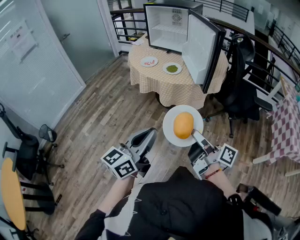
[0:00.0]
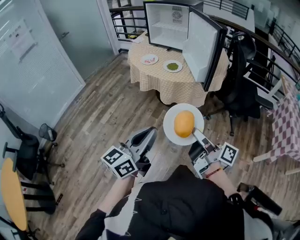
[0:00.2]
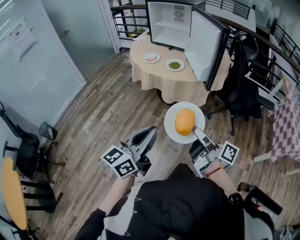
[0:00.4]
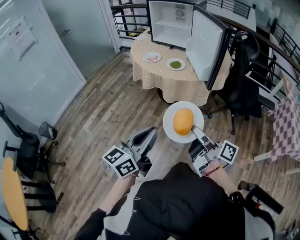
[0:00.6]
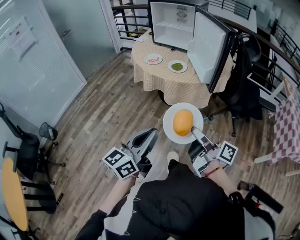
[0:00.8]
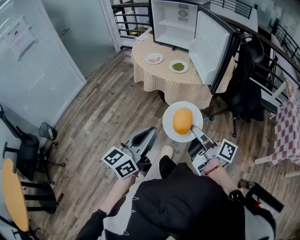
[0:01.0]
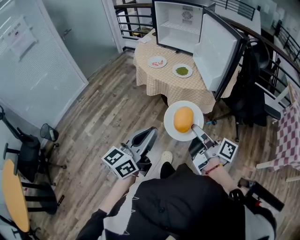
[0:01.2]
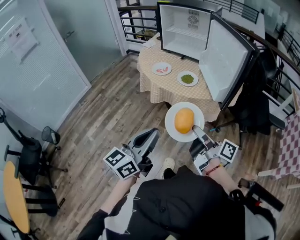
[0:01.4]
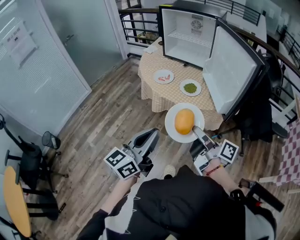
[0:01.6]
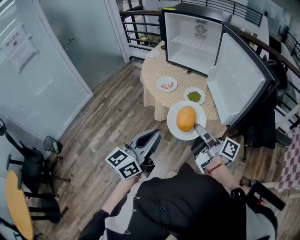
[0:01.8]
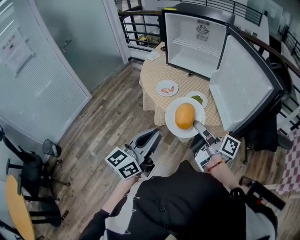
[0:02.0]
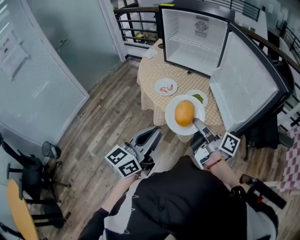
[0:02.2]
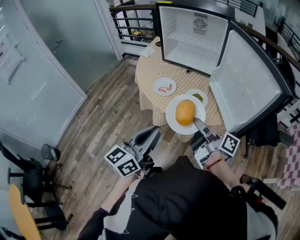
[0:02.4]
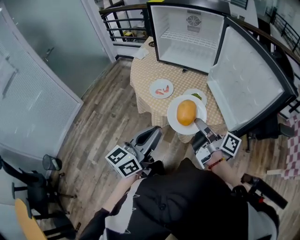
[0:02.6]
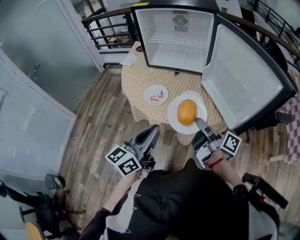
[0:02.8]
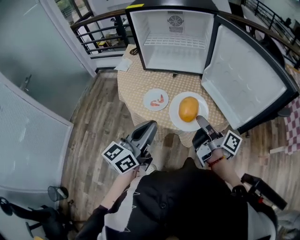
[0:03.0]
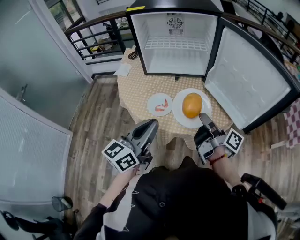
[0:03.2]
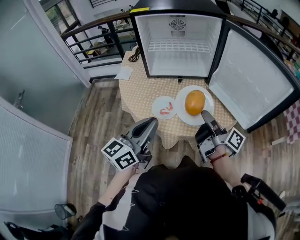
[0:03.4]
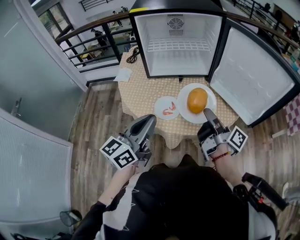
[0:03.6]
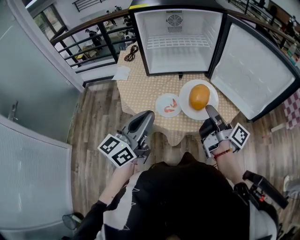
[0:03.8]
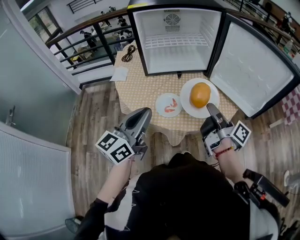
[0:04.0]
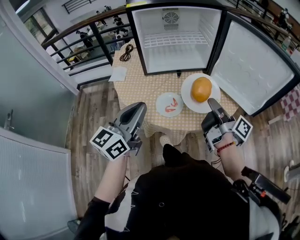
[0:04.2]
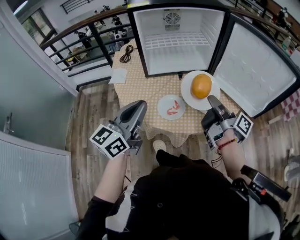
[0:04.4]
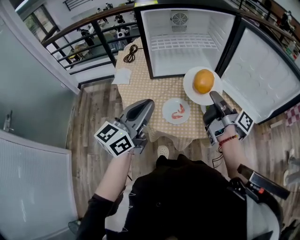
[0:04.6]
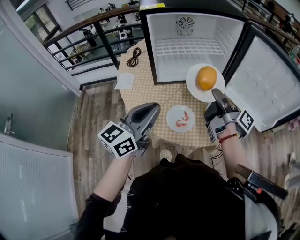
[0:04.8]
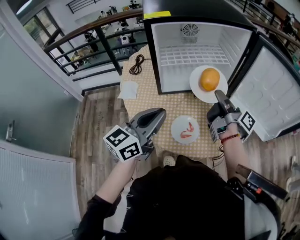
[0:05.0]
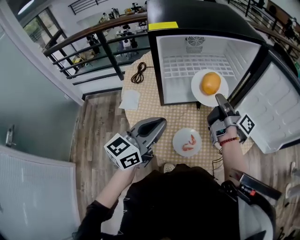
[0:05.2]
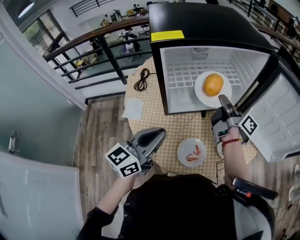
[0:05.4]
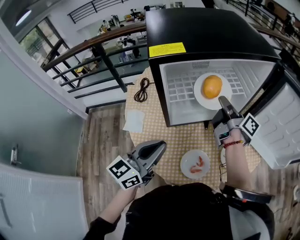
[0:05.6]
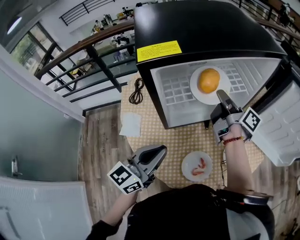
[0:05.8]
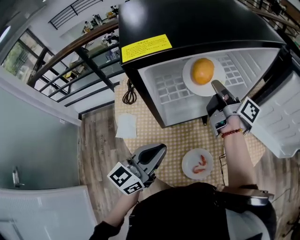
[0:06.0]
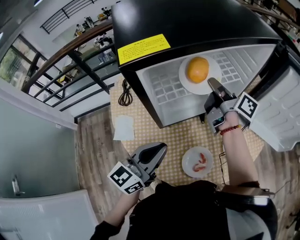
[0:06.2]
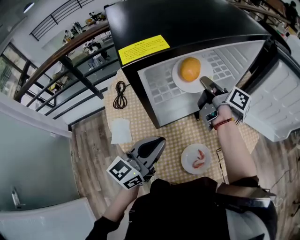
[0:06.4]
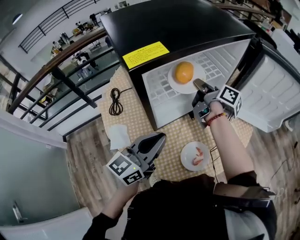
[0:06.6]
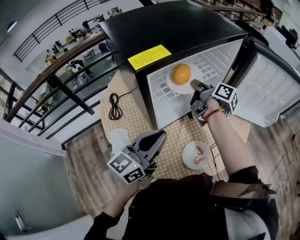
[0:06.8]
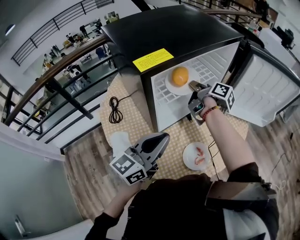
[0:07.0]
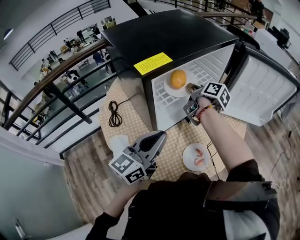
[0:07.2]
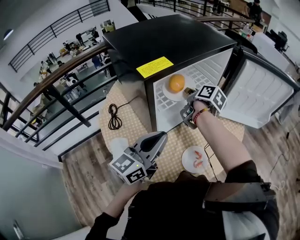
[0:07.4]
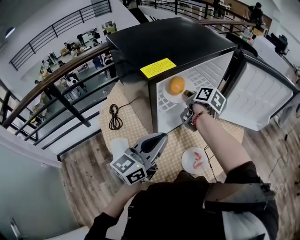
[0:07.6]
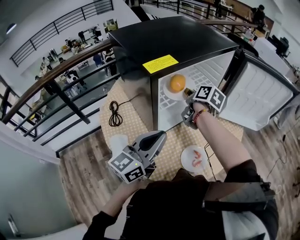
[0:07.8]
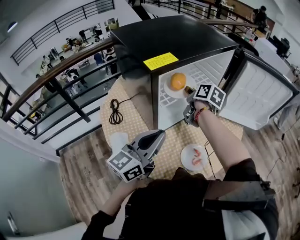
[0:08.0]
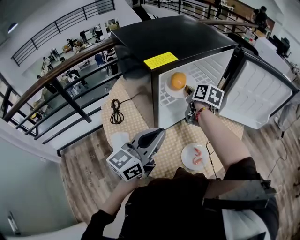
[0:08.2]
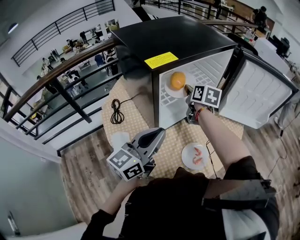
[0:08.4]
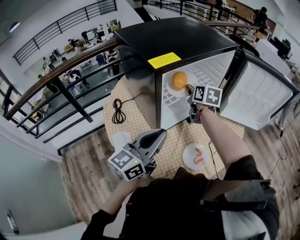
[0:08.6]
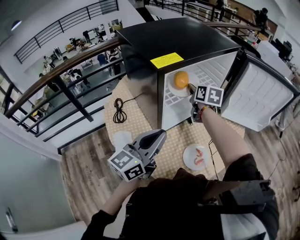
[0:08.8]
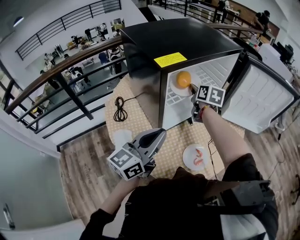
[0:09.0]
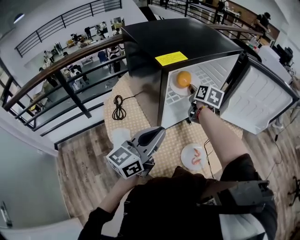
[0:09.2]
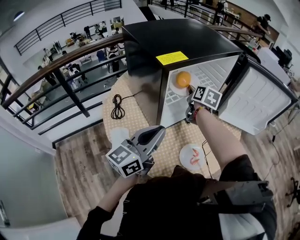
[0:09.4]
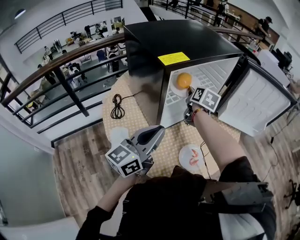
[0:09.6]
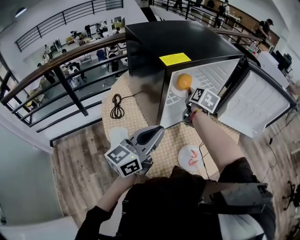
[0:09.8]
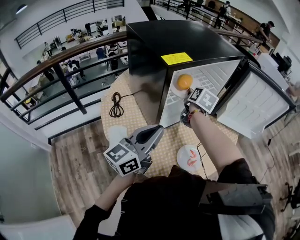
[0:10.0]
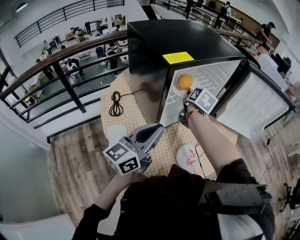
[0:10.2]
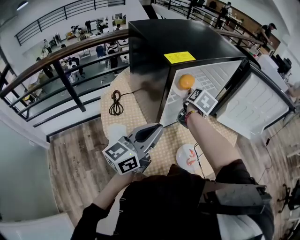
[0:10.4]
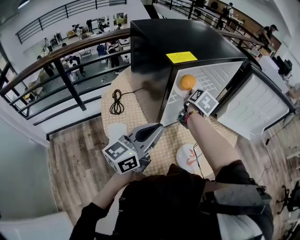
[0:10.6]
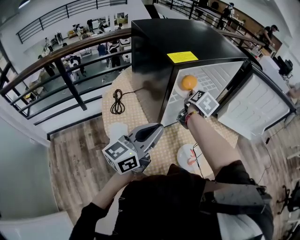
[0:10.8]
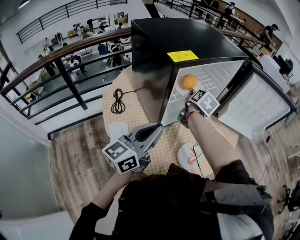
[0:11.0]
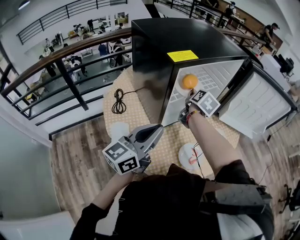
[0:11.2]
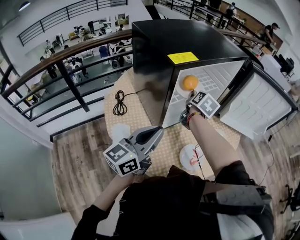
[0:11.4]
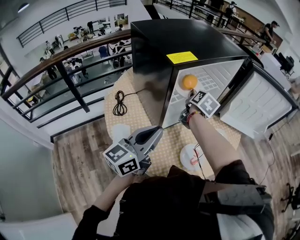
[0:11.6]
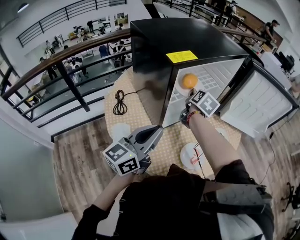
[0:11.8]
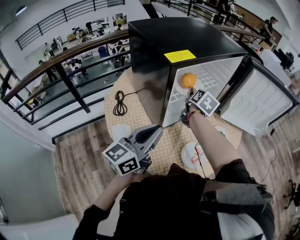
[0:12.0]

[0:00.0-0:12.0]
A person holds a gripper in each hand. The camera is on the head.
0:00.0 to 0:01.6: The left gripper is displaced forward and to the left by about 20 cm; the right gripper travels forward by some 25 cm.
0:01.6 to 0:03.0: The grippers both shift forward by about 25 cm. The right gripper swivels some 20 degrees.
0:03.0 to 0:04.4: The left gripper moves to the left and forward, approximately 20 cm; the right gripper heads to the left and forward, covering about 10 cm, and rotates roughly 20 degrees.
0:04.4 to 0:06.0: The left gripper goes some 20 cm forward, downward and to the left. The right gripper goes approximately 35 cm forward and to the left.
0:06.0 to 0:07.6: The right gripper swivels roughly 40 degrees; the left gripper heads upward, covering about 5 cm, and rotates some 20 degrees.
0:07.6 to 0:09.0: The right gripper changes its angle by about 30 degrees.
0:09.0 to 0:10.4: The right gripper rotates some 20 degrees.
0:10.4 to 0:12.0: The grippers stay close to where they were, moving slightly.

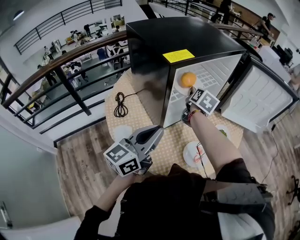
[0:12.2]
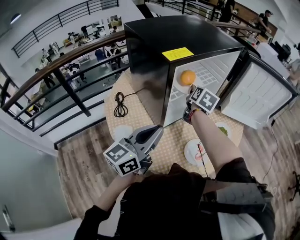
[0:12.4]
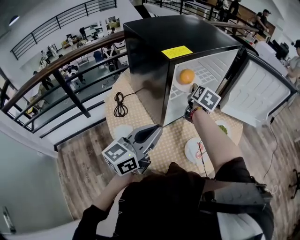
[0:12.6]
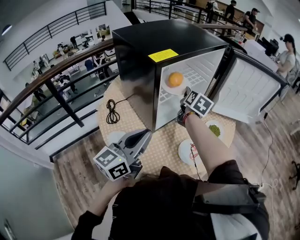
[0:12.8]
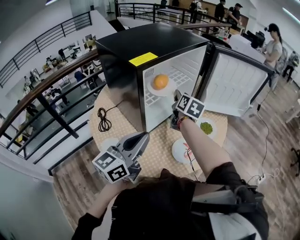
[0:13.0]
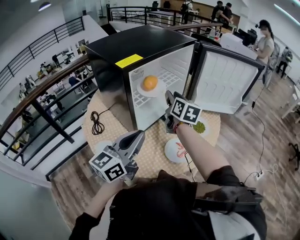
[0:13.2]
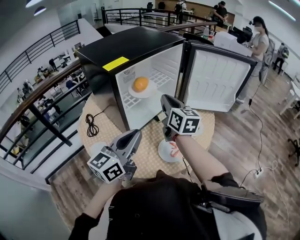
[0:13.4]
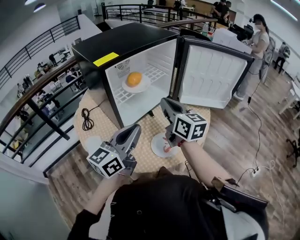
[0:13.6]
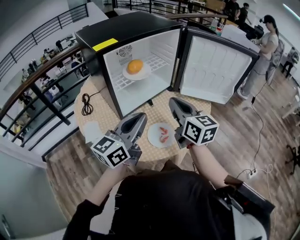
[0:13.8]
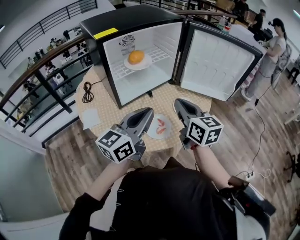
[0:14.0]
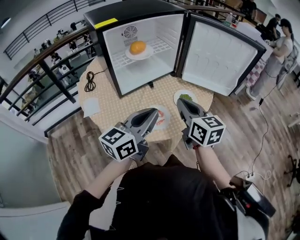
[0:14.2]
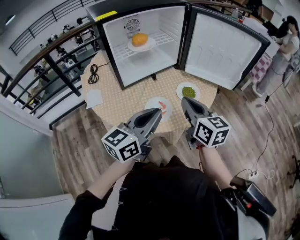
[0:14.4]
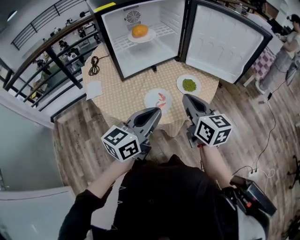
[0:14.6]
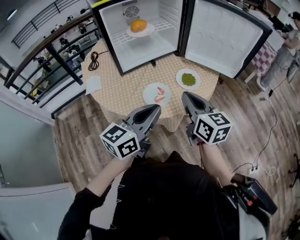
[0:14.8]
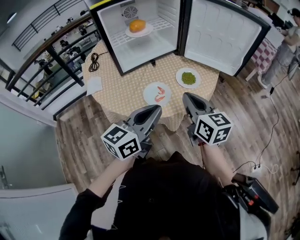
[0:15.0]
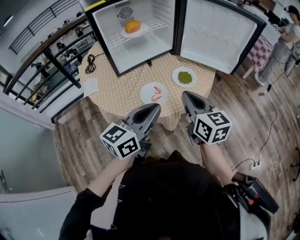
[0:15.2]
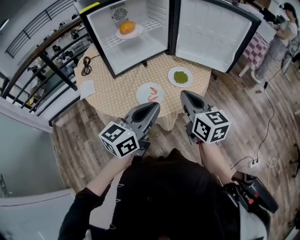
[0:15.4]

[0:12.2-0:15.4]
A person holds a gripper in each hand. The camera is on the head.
0:12.2 to 0:13.8: The left gripper shifts roughly 15 cm to the right; the right gripper travels backward and to the right by about 25 cm, rotates some 40 degrees, and closes.
0:13.8 to 0:15.4: Both grippers travel together to the right, backward and downward, about 20 cm.

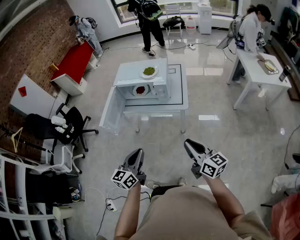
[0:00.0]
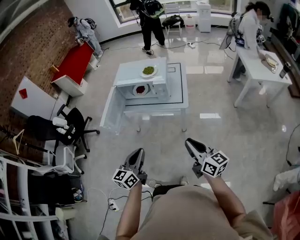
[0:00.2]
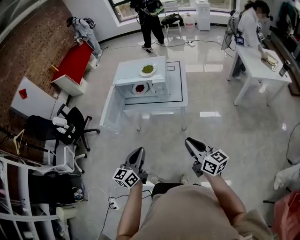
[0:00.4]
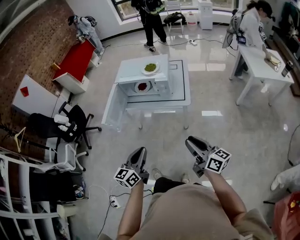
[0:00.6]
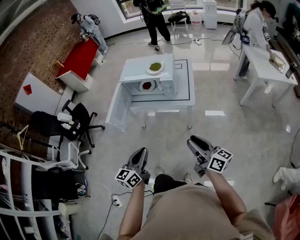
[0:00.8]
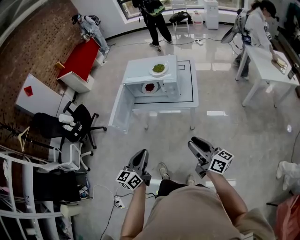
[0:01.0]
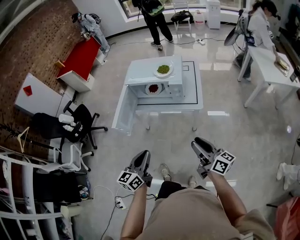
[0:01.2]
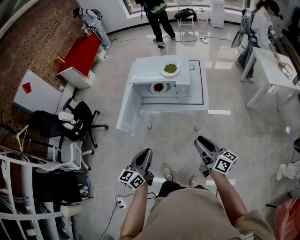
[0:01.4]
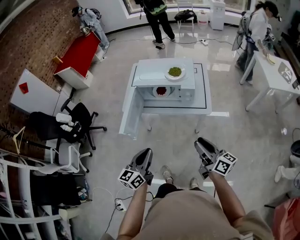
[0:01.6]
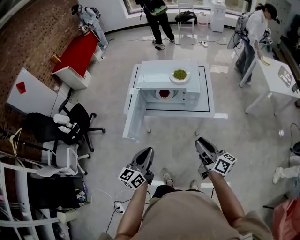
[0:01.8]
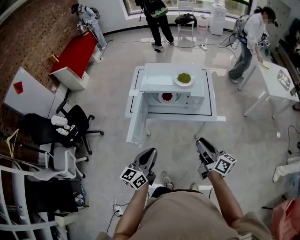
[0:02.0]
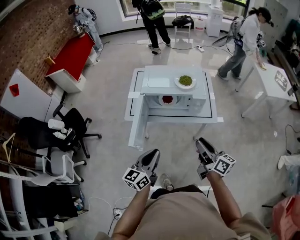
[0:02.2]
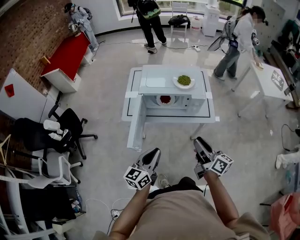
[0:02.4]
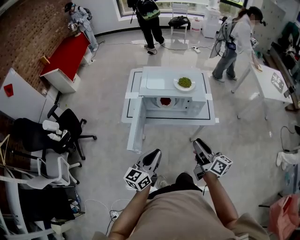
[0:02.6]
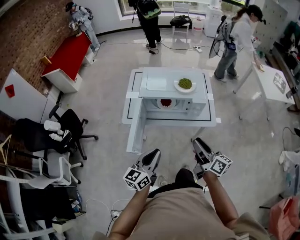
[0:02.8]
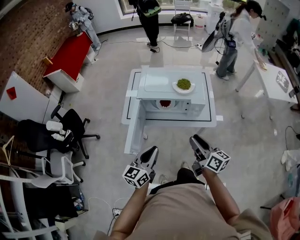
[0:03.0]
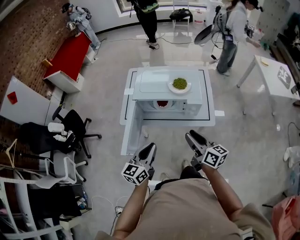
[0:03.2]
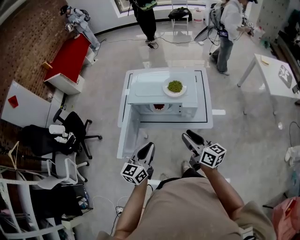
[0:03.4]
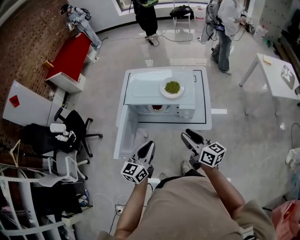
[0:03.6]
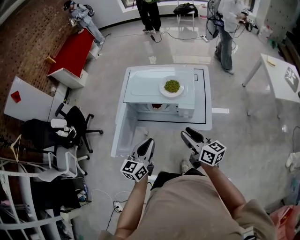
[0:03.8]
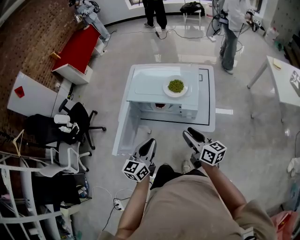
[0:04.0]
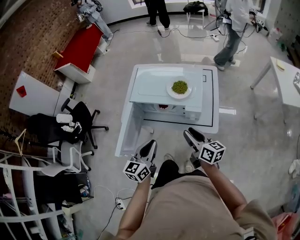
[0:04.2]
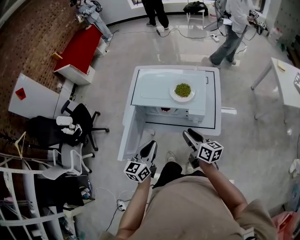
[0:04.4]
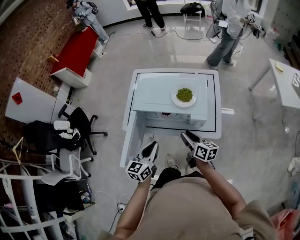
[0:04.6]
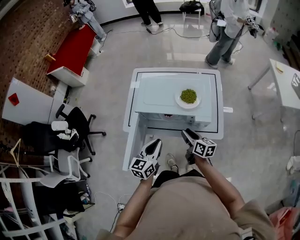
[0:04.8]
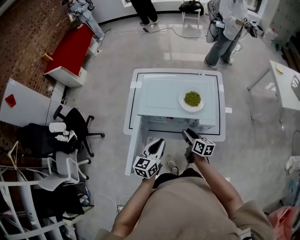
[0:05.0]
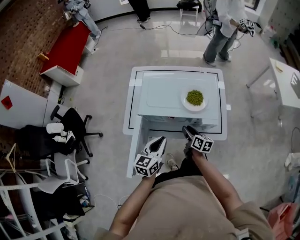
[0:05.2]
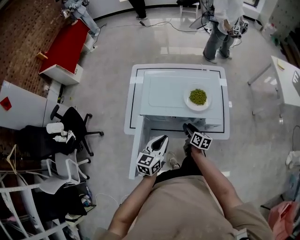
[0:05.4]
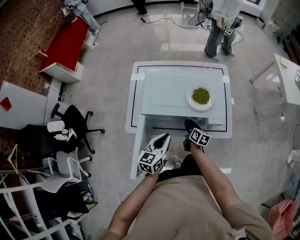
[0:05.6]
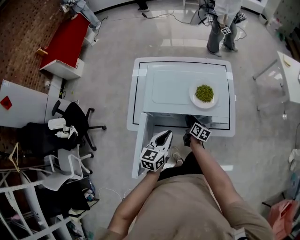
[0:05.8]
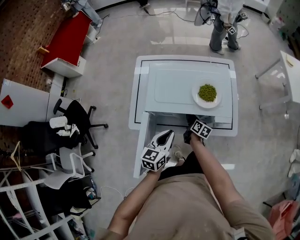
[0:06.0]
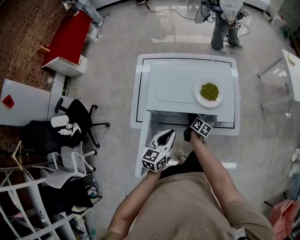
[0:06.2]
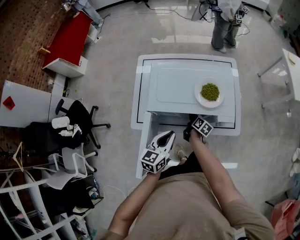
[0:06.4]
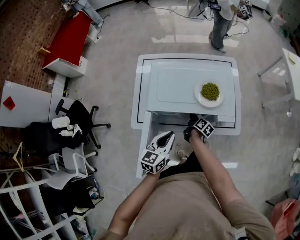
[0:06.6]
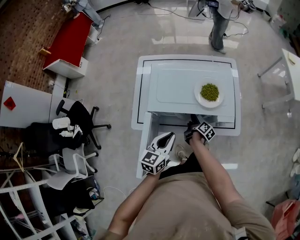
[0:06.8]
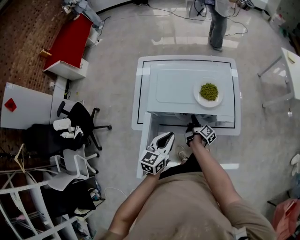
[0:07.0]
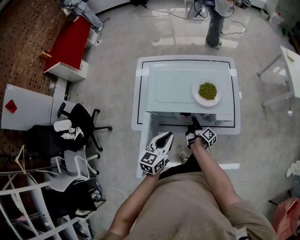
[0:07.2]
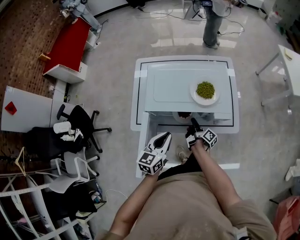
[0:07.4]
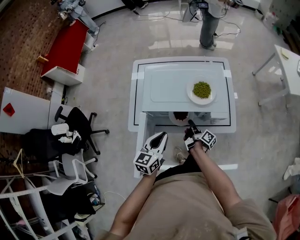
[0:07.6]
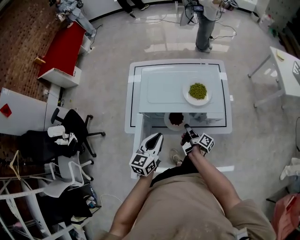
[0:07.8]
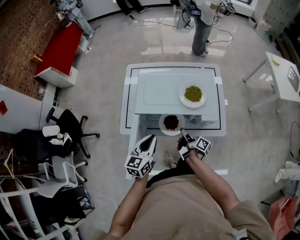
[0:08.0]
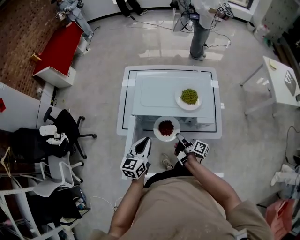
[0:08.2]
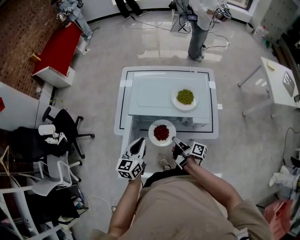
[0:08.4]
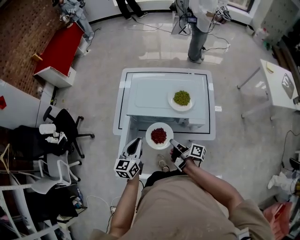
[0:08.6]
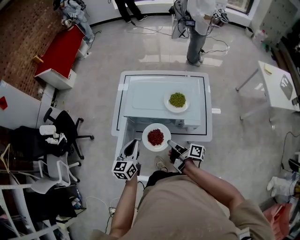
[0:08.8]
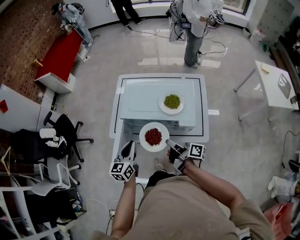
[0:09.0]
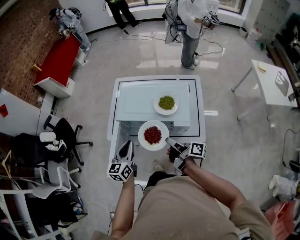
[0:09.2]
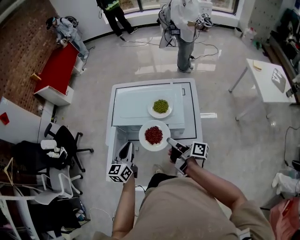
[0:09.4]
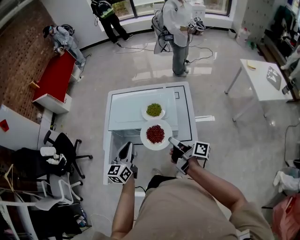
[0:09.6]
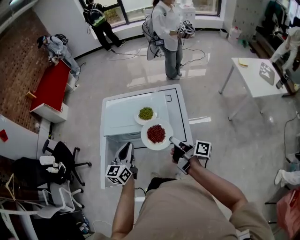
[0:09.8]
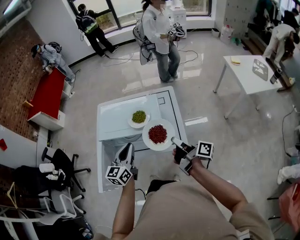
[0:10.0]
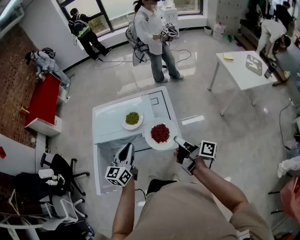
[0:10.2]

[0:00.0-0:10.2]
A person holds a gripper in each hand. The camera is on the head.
0:00.0 to 0:01.4: The left gripper is displaced to the left and forward by roughly 10 cm. The right gripper travels forward and to the left by roughly 10 cm, and opens.
0:01.4 to 0:03.0: Both grippers move forward and to the left, roughly 20 cm.
0:03.0 to 0:04.4: The left gripper goes approximately 10 cm forward and to the right. The right gripper shifts about 15 cm forward and downward.
0:04.4 to 0:05.8: The left gripper travels forward and downward by about 15 cm; the right gripper goes about 30 cm downward and forward, and turns by some 30 degrees.
0:05.8 to 0:07.2: The right gripper turns by approximately 40 degrees, and closes.
0:07.2 to 0:08.8: The left gripper ends up approximately 5 cm from where it was. Meanwhile the right gripper heads upward, covering roughly 20 cm, and rotates roughly 30 degrees.
0:08.8 to 0:10.2: The grippers both shift to the right and upward by roughly 25 cm. The right gripper rotates approximately 20 degrees.
